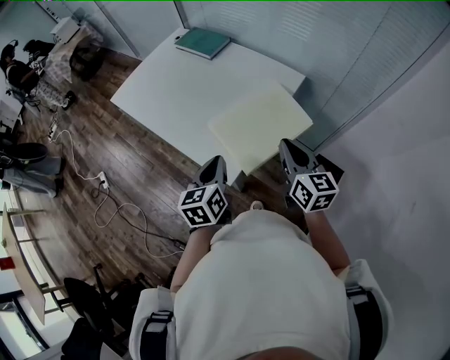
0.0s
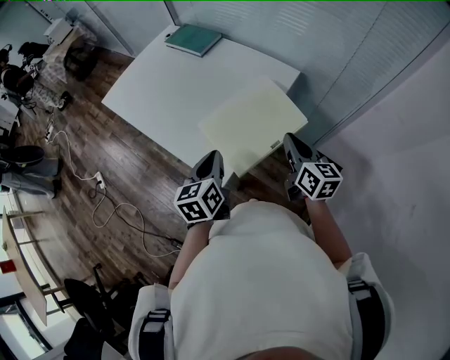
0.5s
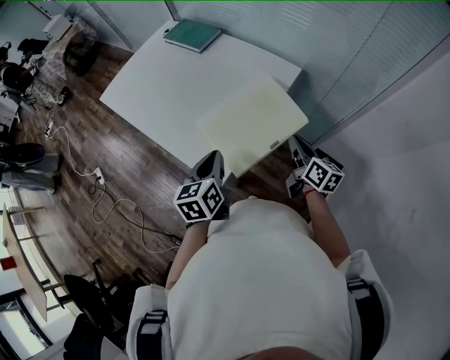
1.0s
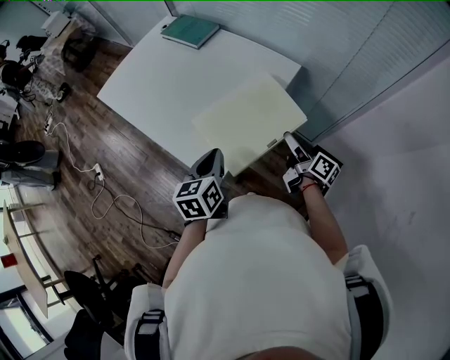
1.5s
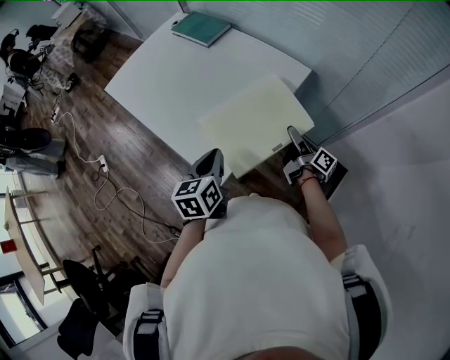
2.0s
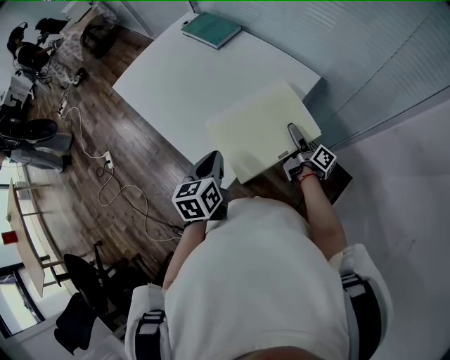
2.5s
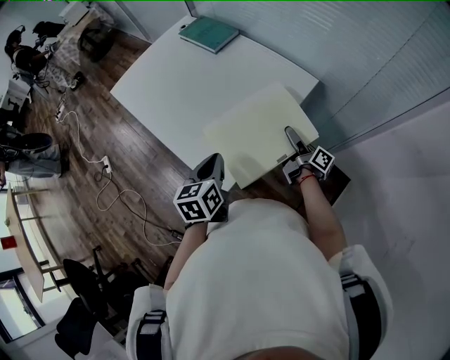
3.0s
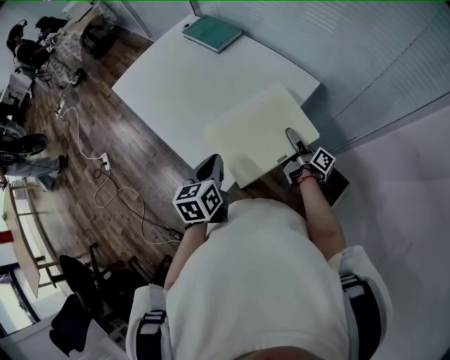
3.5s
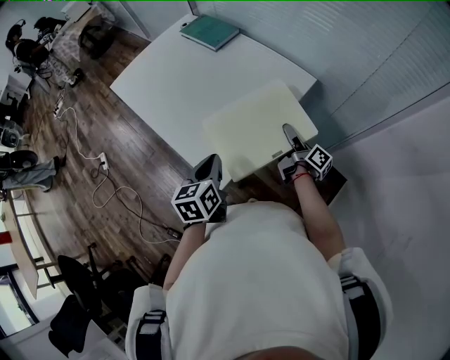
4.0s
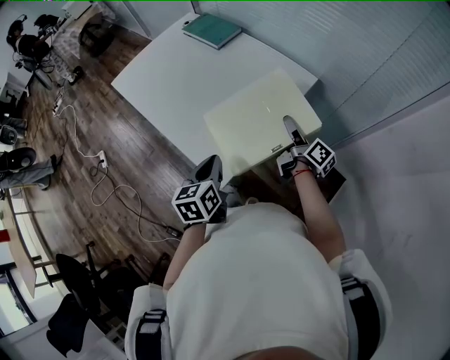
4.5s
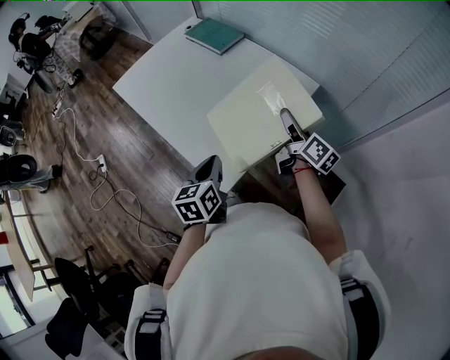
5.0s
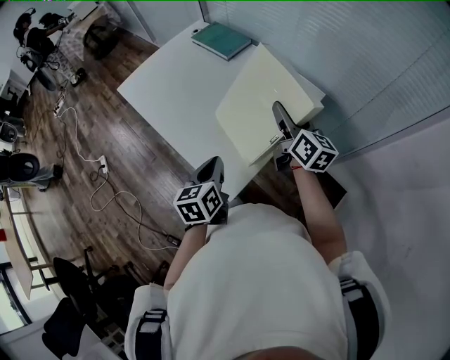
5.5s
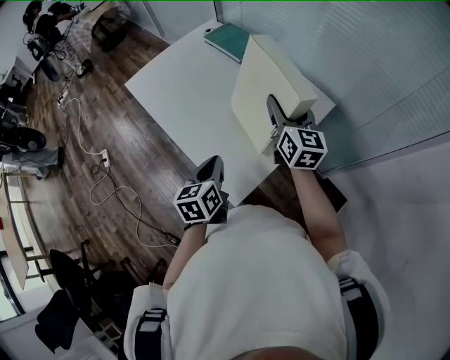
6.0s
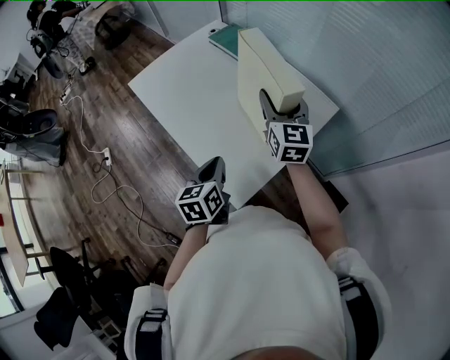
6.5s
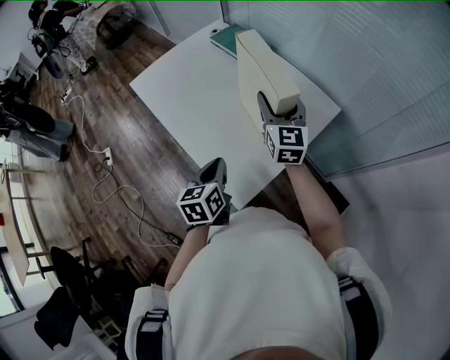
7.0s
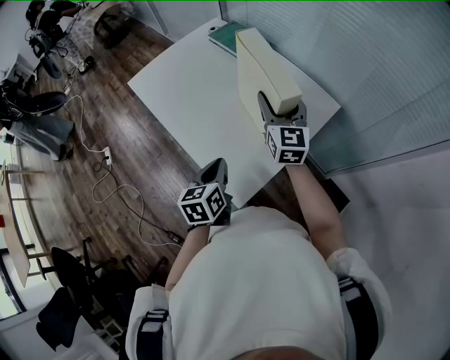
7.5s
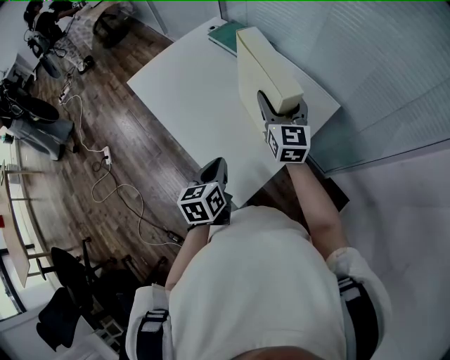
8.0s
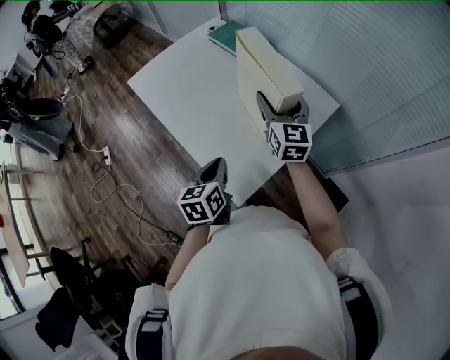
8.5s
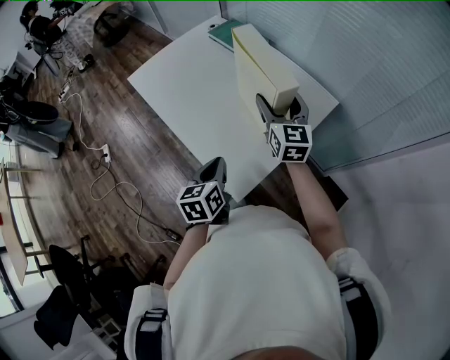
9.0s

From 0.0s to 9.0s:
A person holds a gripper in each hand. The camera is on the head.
From 0.0s to 2.0s: The left gripper changes place by roughly 5 cm; the right gripper goes about 20 cm downward, forward and to the right, twists about 60 degrees clockwise, seen from behind, and opens its fingers.
From 2.0s to 4.5s: The right gripper moves upward, approximately 5 cm, and closes up.
From 4.5s to 7.0s: The right gripper travels to the left, upward and forward by about 25 cm, and rolls counterclockwise, seen from behind, by some 70 degrees. Meanwhile the left gripper heads forward and to the left, covering about 10 cm.
From 7.0s to 9.0s: The grippers stay close to where they were, moving slightly.

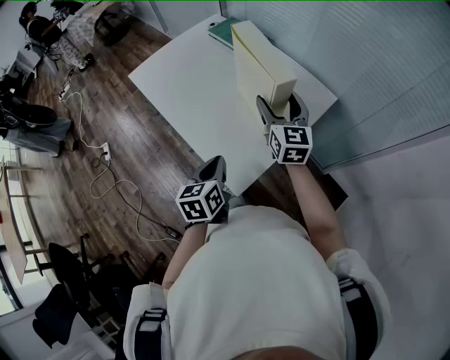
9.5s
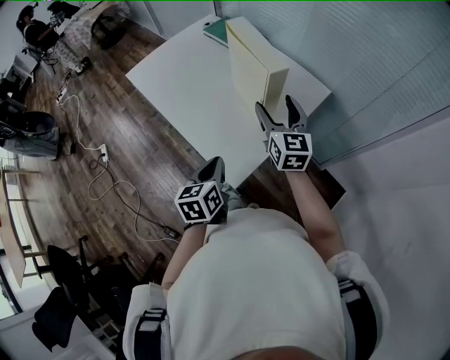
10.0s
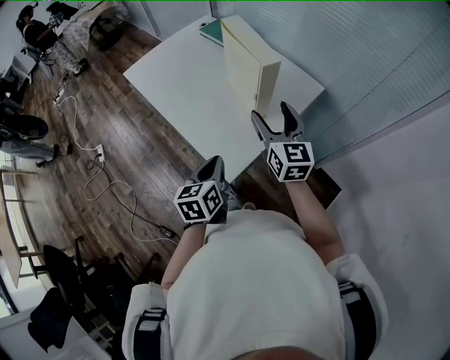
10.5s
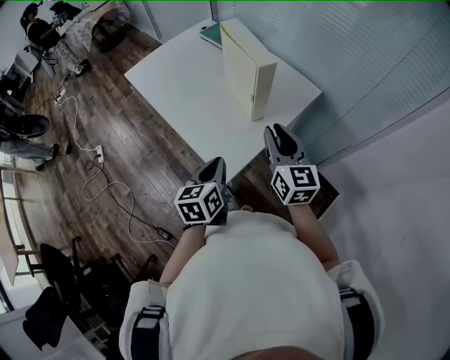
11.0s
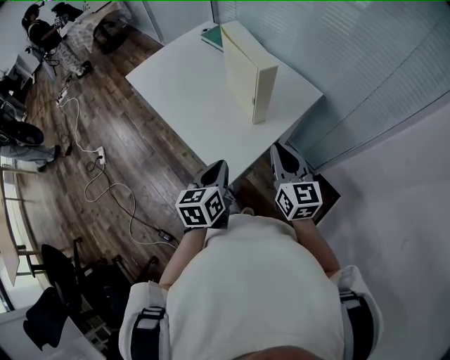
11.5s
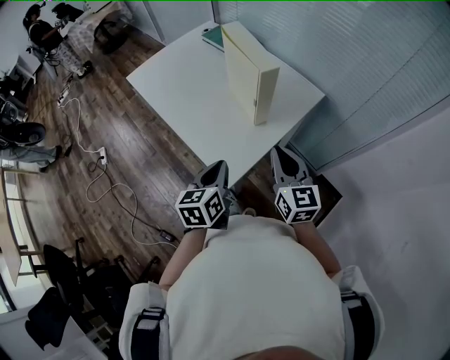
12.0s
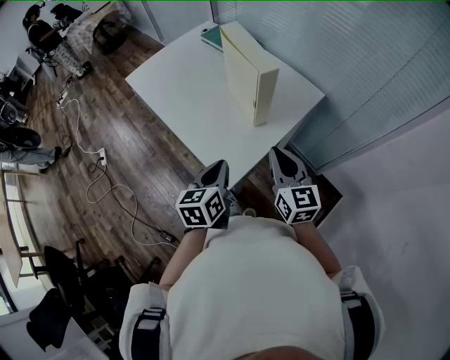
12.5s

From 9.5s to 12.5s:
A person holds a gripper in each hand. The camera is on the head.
From 9.5s to 11.0s: The left gripper is displaced backward by about 5 cm. The right gripper heads backward, covering about 15 cm, and closes.
From 11.0s to 12.5s: The grippers move only a little.

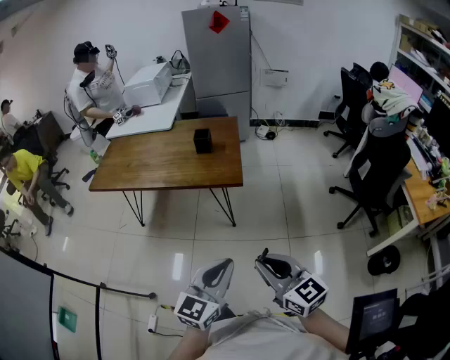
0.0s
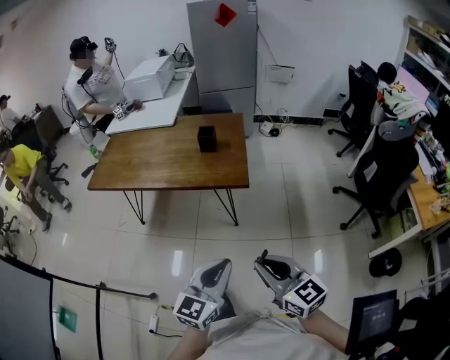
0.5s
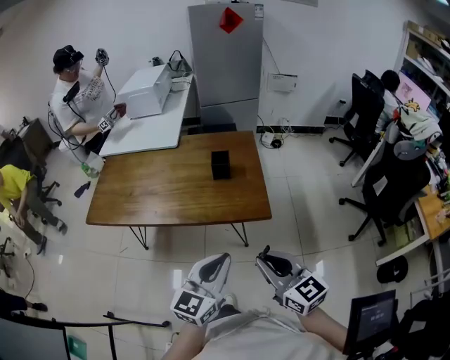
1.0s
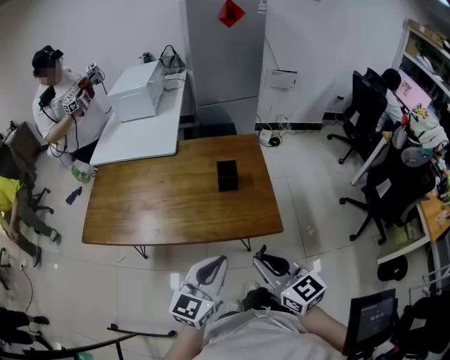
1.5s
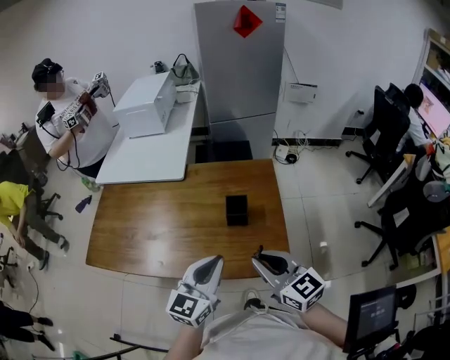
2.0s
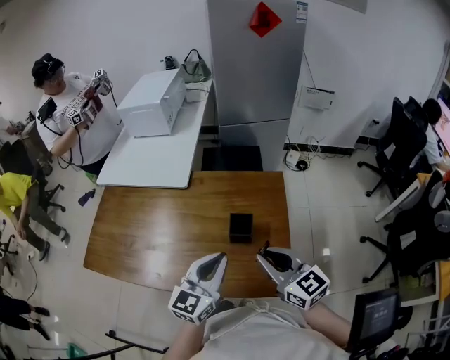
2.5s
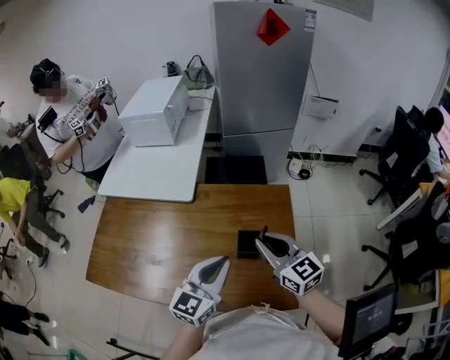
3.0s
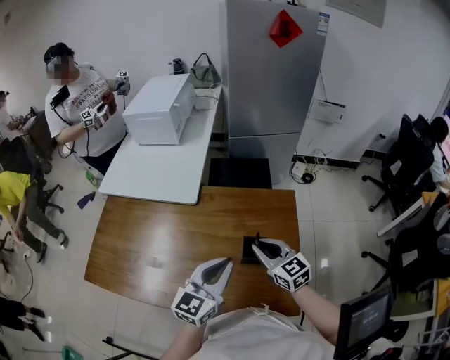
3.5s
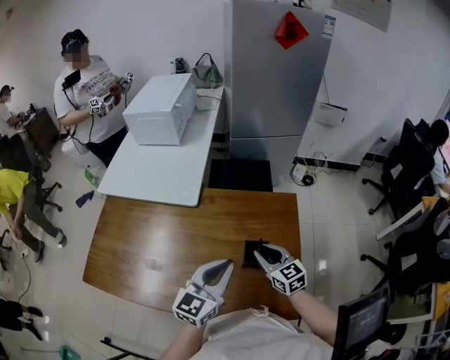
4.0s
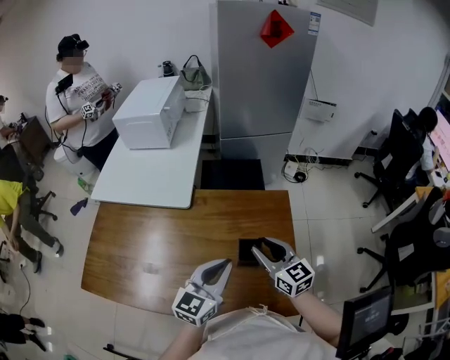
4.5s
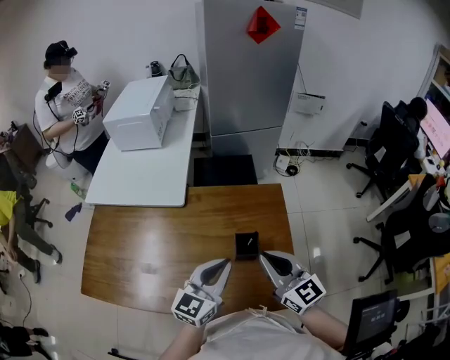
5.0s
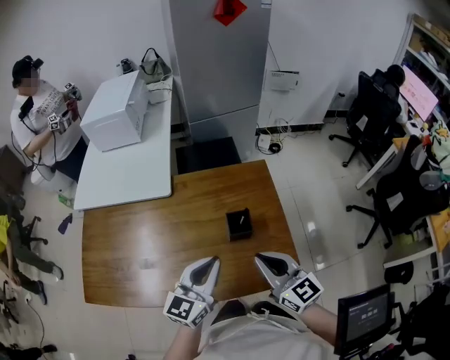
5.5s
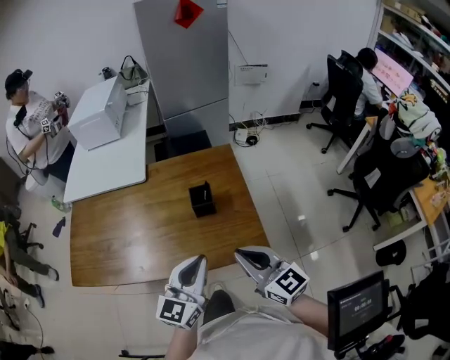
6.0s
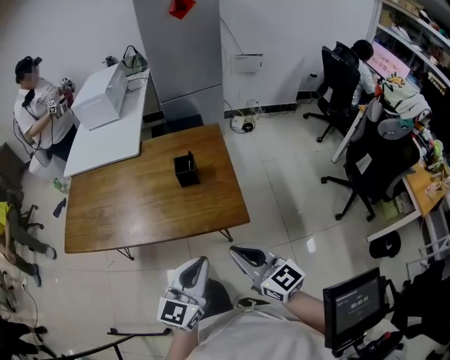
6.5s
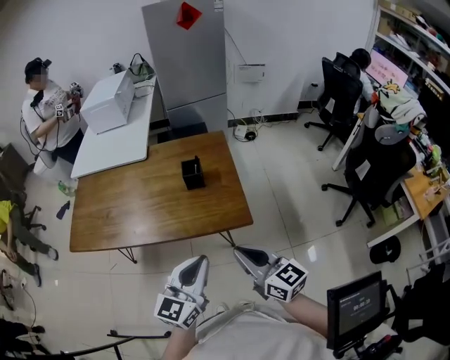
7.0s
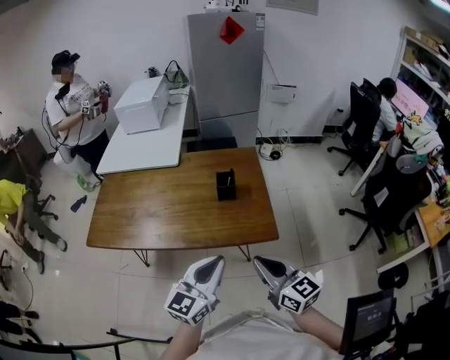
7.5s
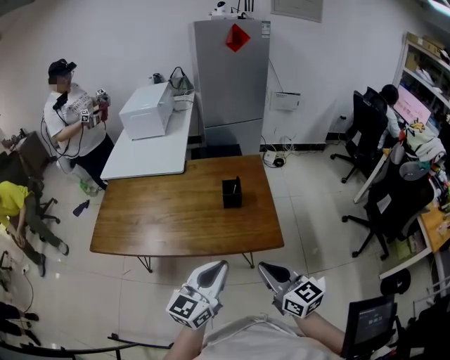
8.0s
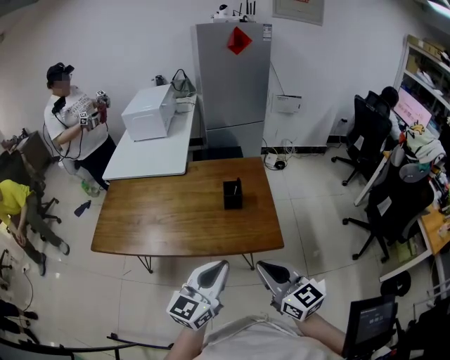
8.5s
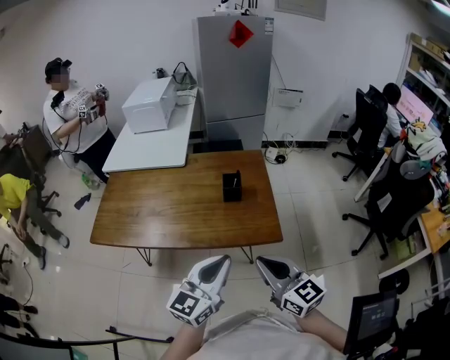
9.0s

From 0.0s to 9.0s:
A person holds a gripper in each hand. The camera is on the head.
From 0.0s to 2.0s: Both grippers are carried forward, some 50 cm.
From 2.0s to 4.5s: Both grippers travel together forward, approximately 20 cm. The right gripper opens up.
From 4.5s to 7.0s: Both grippers travel together backward, some 40 cm. The right gripper closes.
From 7.0s to 9.0s: The left gripper shifts by roughly 5 cm; the right gripper shifts roughly 5 cm to the left.

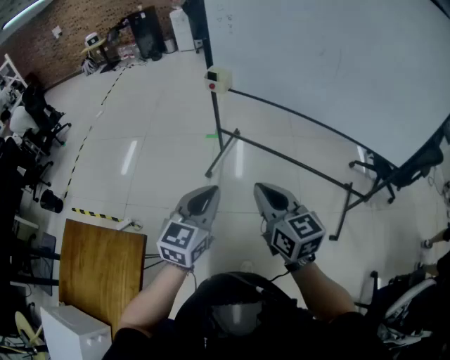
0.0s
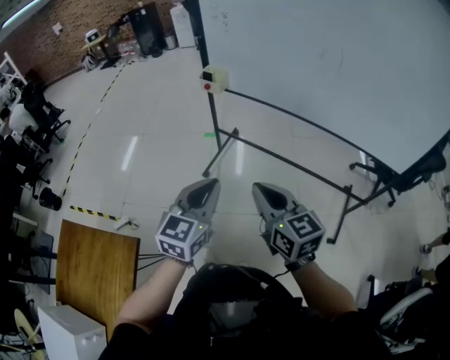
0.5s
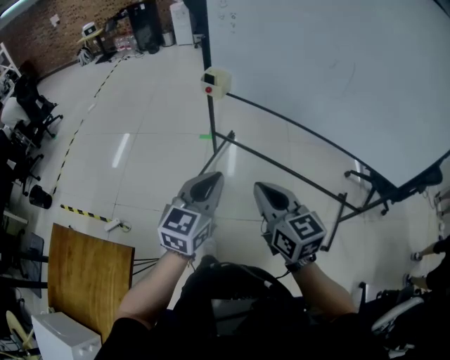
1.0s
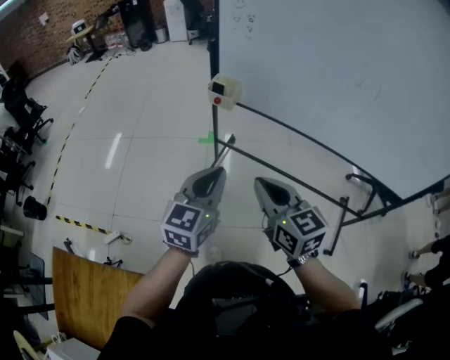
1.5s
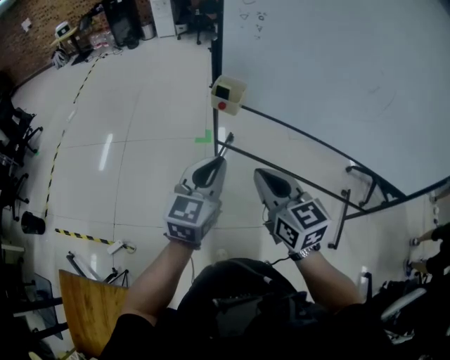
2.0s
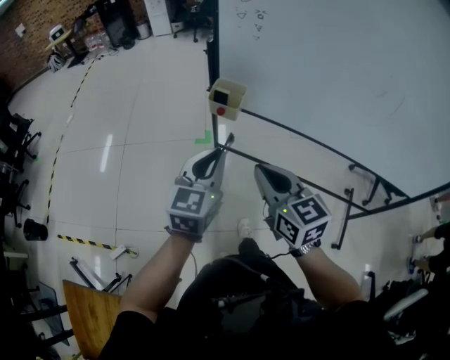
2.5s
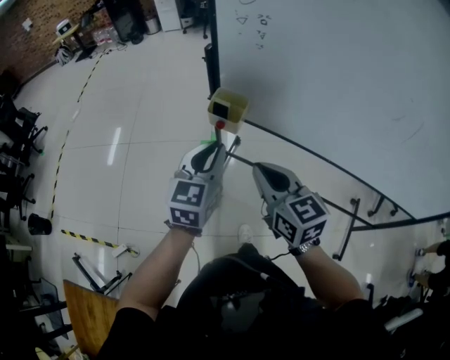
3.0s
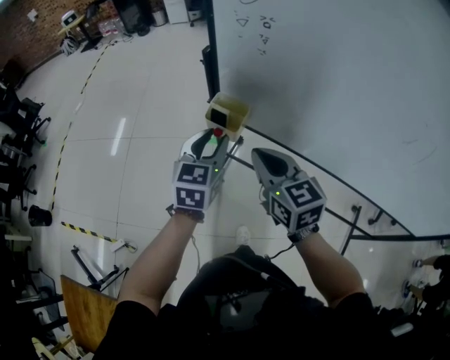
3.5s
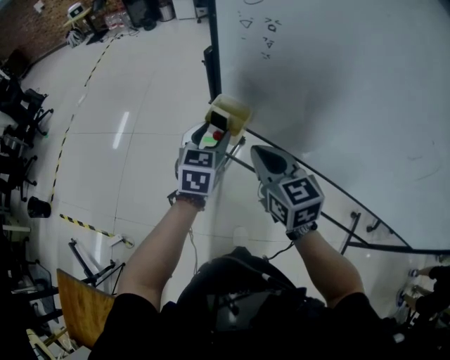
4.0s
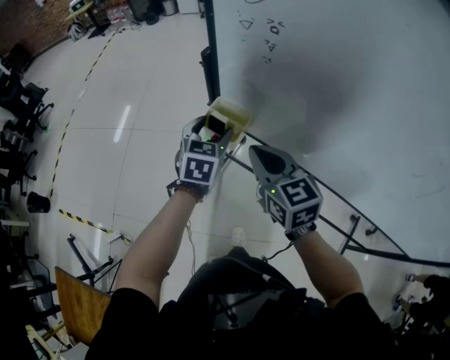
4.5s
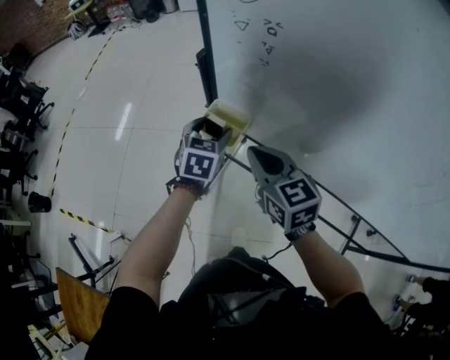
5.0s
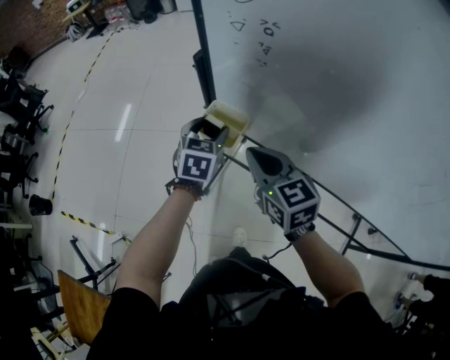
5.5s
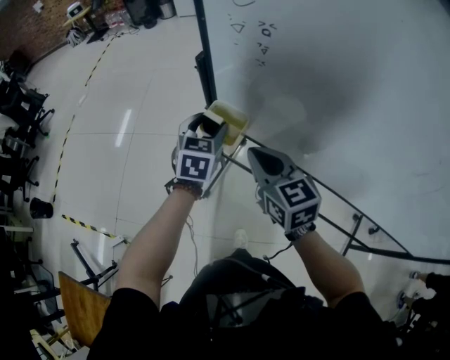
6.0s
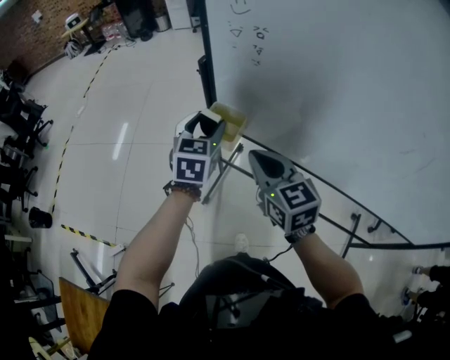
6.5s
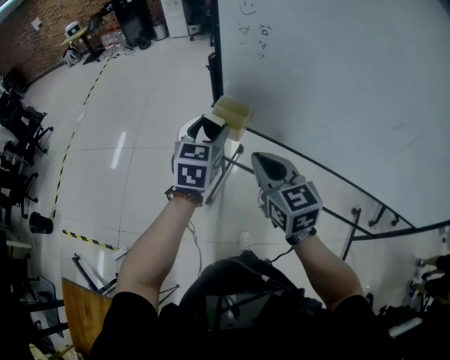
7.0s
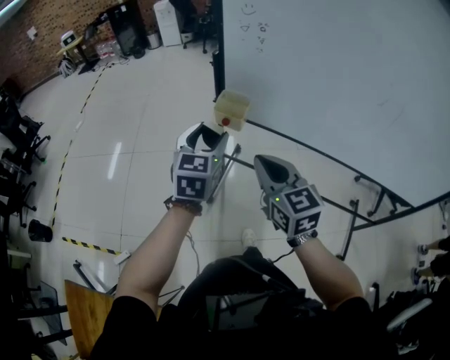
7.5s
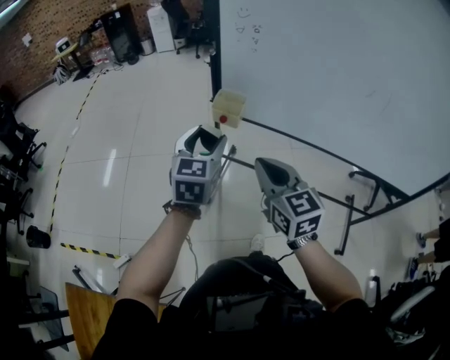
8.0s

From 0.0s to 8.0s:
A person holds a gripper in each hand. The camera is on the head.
From 0.0s to 2.0s: The grippers both shift forward by roughly 30 cm.
From 2.0s to 4.0s: Both grippers move forward, approximately 25 cm. The left gripper rotates about 20 degrees, and opens its fingers.
From 4.0s to 6.0s: The left gripper heads forward, covering approximately 5 cm.
From 6.0s to 8.0s: The right gripper goes some 20 cm backward, while the left gripper is displaced backward and upward by about 25 cm.
